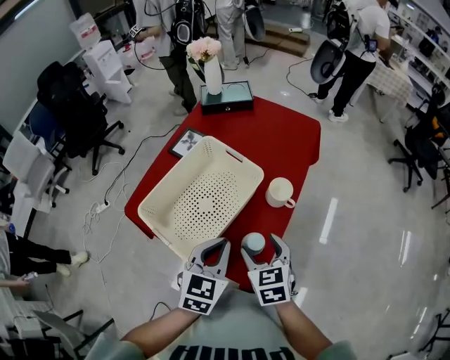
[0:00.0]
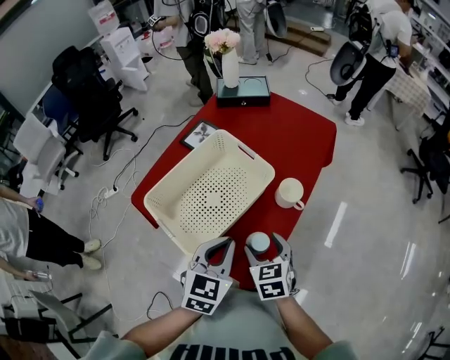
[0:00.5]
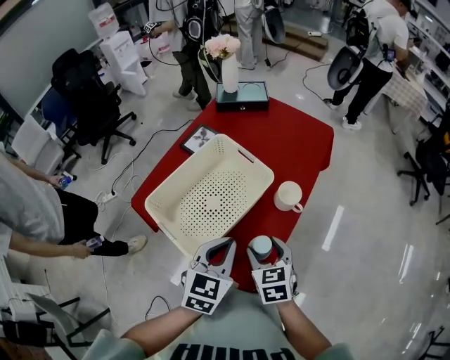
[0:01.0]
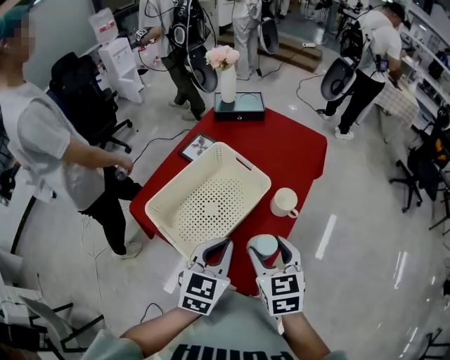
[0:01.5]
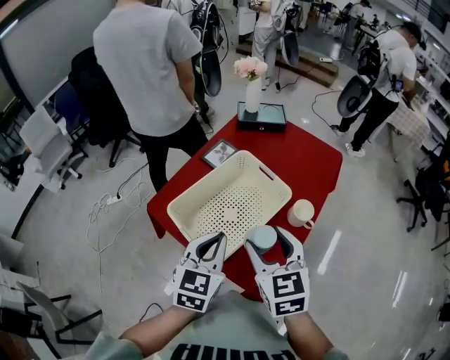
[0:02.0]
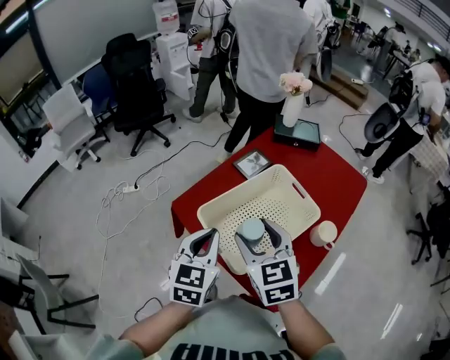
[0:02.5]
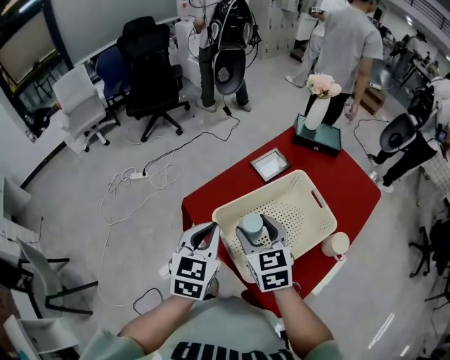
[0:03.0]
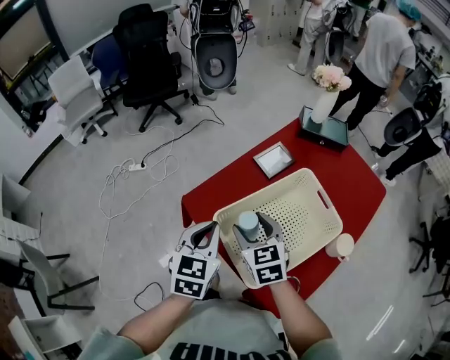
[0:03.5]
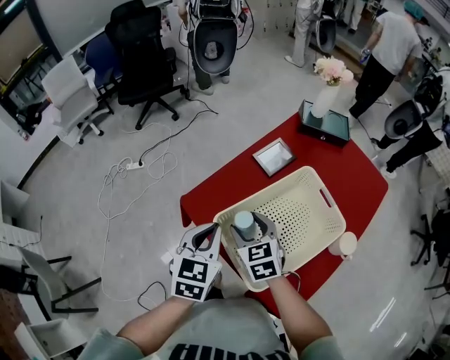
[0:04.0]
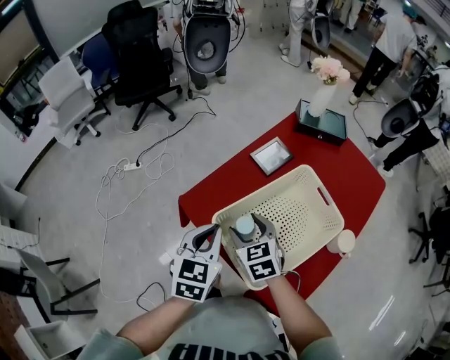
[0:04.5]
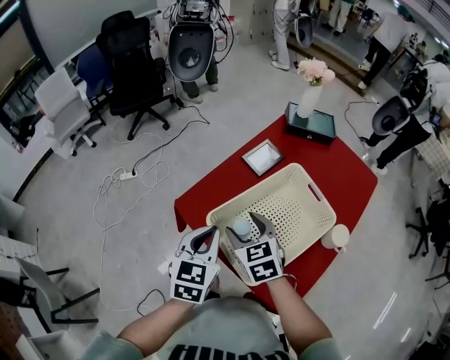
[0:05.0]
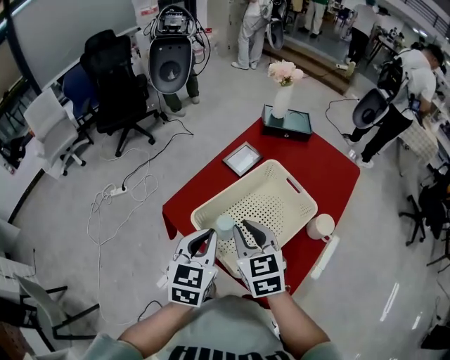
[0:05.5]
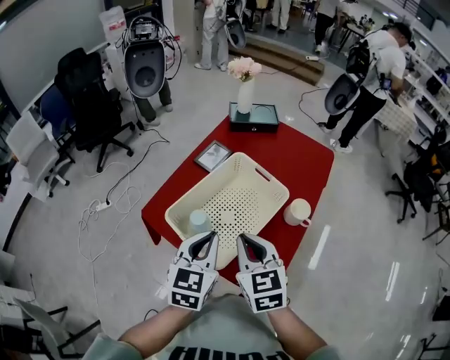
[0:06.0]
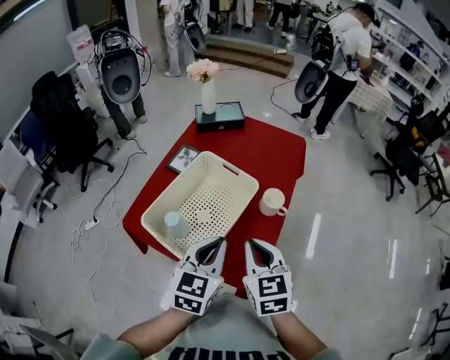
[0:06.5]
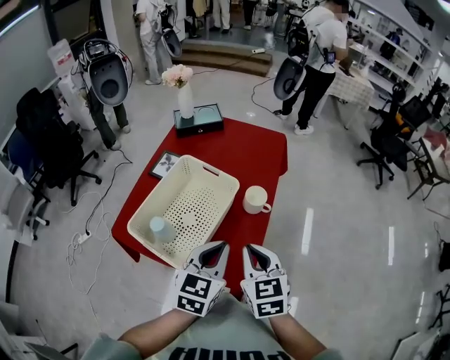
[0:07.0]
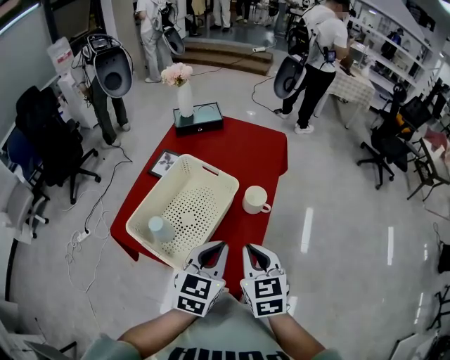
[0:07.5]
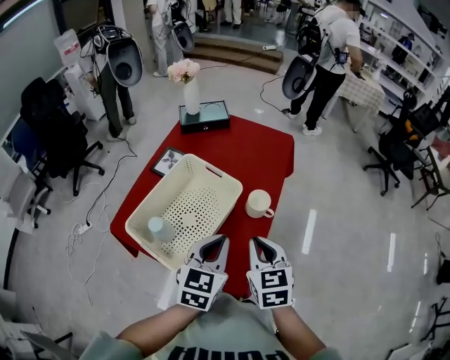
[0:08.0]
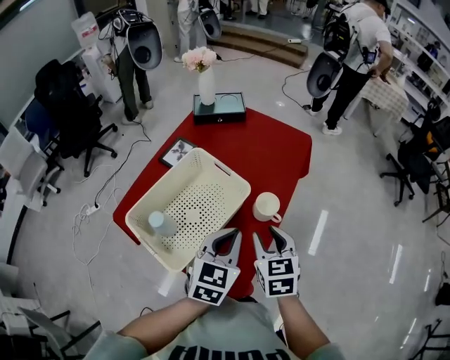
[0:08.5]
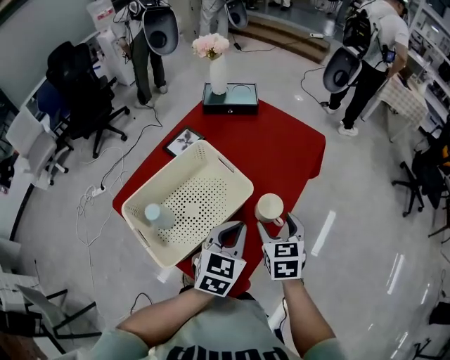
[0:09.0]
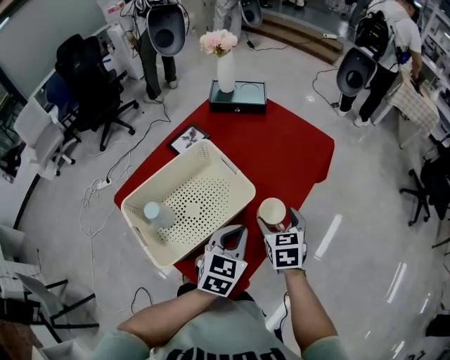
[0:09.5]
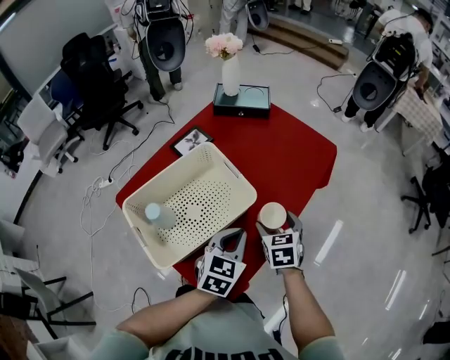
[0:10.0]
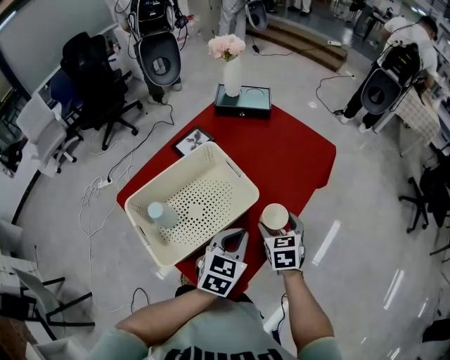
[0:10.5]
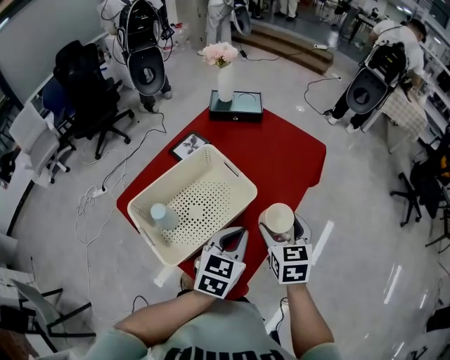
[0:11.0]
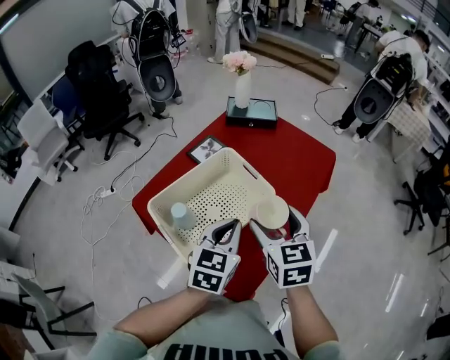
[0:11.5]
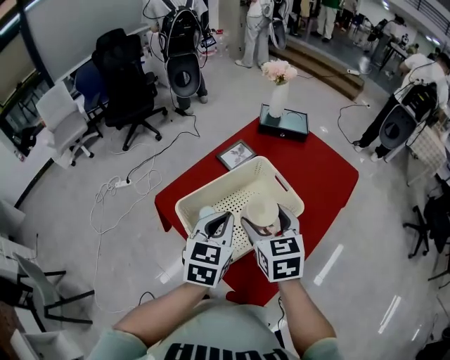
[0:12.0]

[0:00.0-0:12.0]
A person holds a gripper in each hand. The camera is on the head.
0:00.0 to 0:02.0: The left gripper is displaced to the left and upward by some 10 cm. The right gripper is displaced upward and to the left by approximately 15 cm.
0:02.0 to 0:04.0: The right gripper travels to the left, forward and downward by some 30 cm, and turns by some 20 degrees. The left gripper travels to the left and forward by some 20 cm.
0:04.0 to 0:06.0: The right gripper is displaced to the right, backward and upward by some 20 cm, rotates about 20 degrees, and closes its fingers, while the left gripper travels to the right and backward by roughly 15 cm.
0:06.0 to 0:08.0: Both grippers move to the right, about 15 cm.
0:08.0 to 0:10.0: The left gripper heads downward, forward and to the right, covering approximately 15 cm; the right gripper is displaced forward and downward by approximately 20 cm, and opens.
0:10.0 to 0:12.0: Both grippers move to the left and upward, some 25 cm.

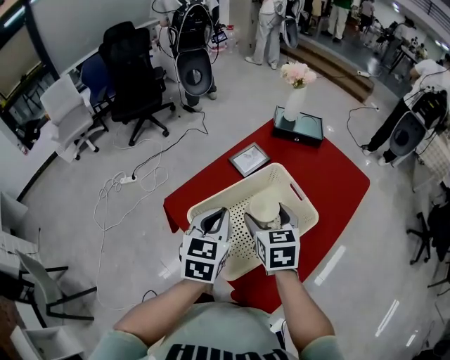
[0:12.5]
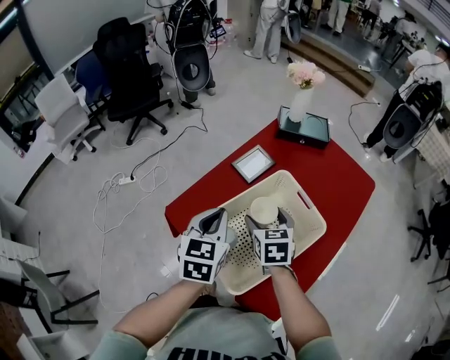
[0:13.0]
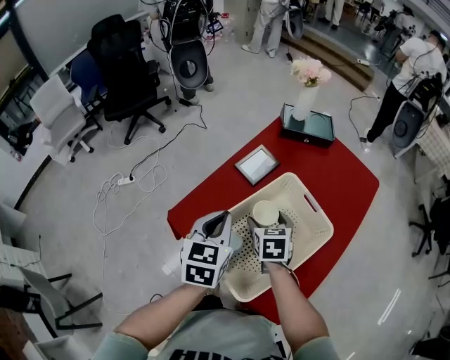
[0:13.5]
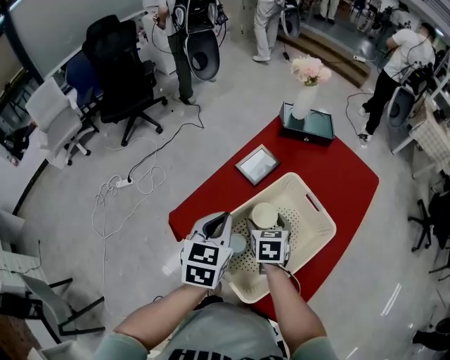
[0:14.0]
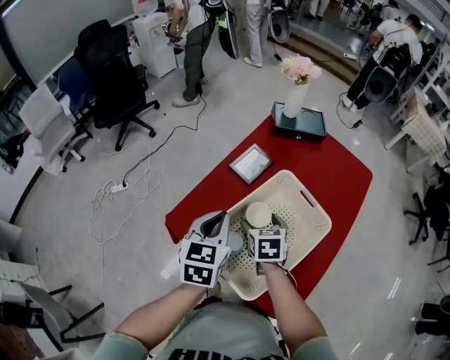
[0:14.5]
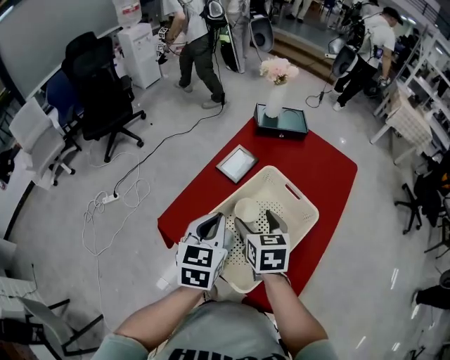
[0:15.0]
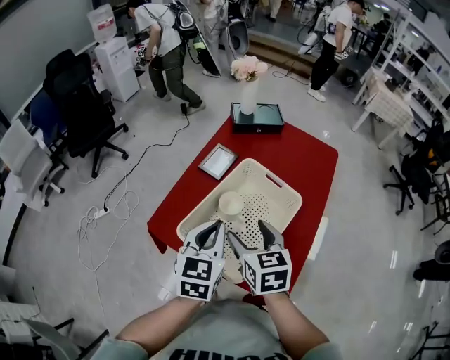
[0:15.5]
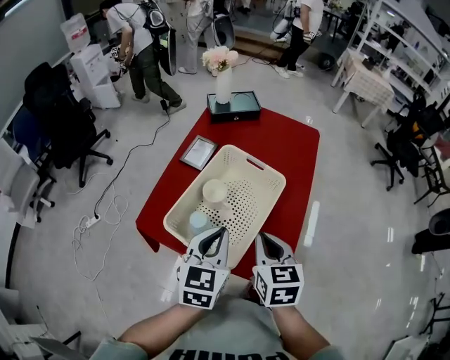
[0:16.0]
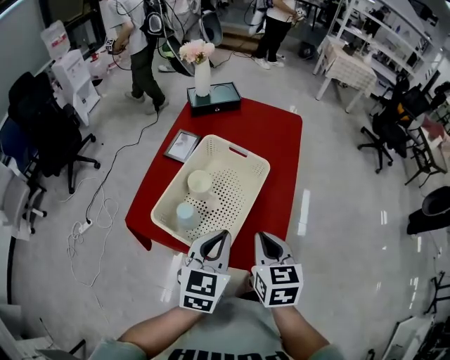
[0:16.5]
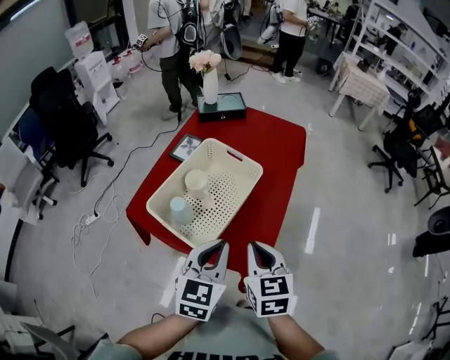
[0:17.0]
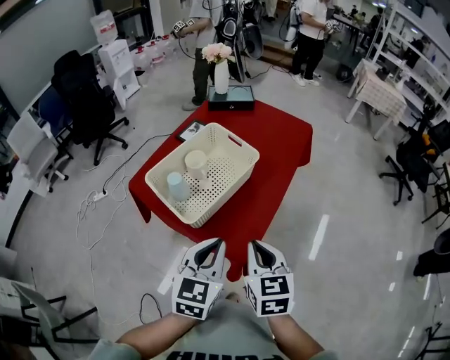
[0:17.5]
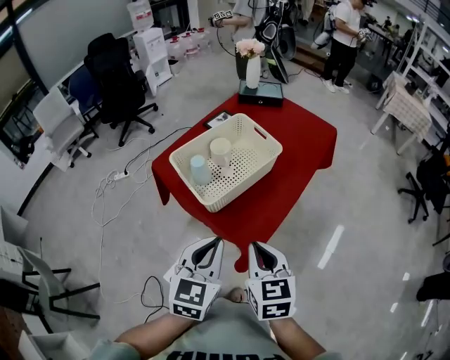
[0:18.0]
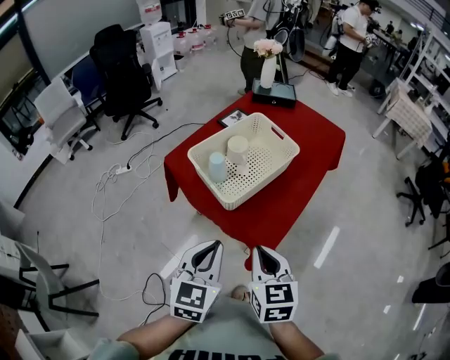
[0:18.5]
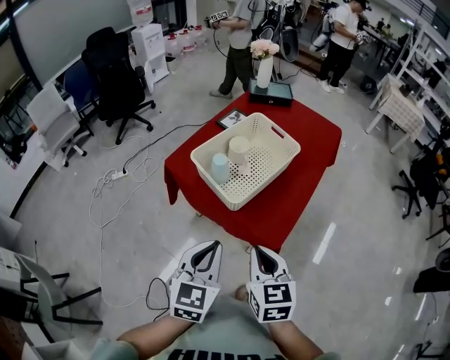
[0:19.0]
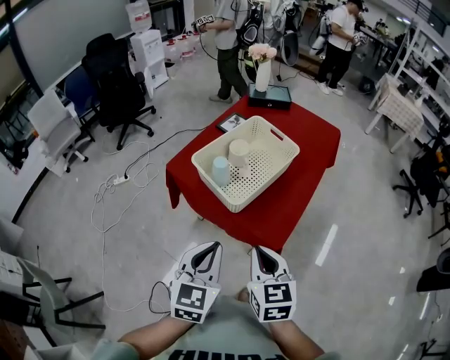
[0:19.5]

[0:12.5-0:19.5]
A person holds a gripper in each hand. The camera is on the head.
0:12.5 to 0:14.5: The left gripper goes approximately 5 cm forward; the right gripper heads downward, covering about 10 cm.
0:14.5 to 0:16.0: The left gripper shifts roughly 15 cm to the right and backward, and rotates some 20 degrees; the right gripper goes roughly 25 cm backward, upward and to the right, changes its angle by about 20 degrees, and closes up.
0:16.0 to 0:17.5: The grippers both shift to the right and backward by roughly 20 cm.
0:17.5 to 0:19.5: Both grippers move to the left and backward, roughly 15 cm.

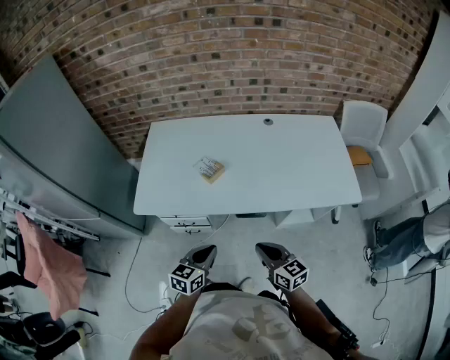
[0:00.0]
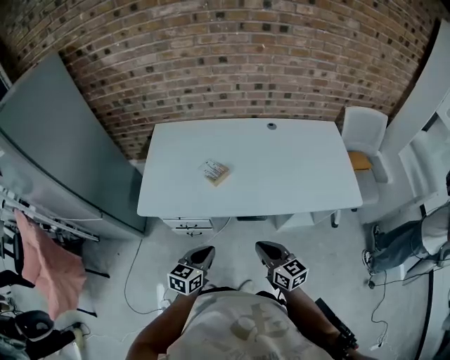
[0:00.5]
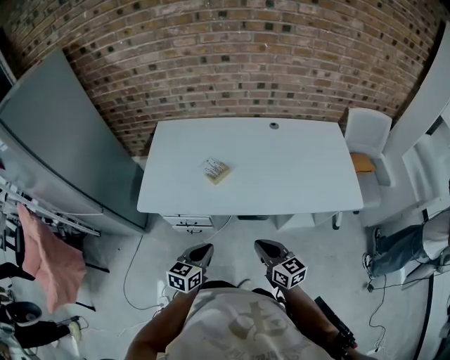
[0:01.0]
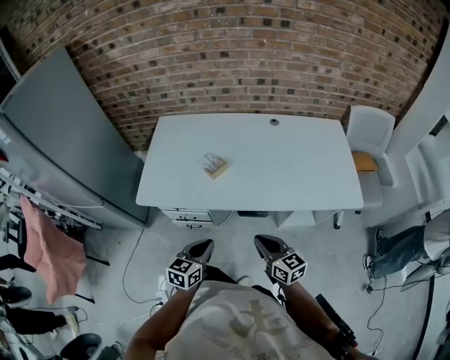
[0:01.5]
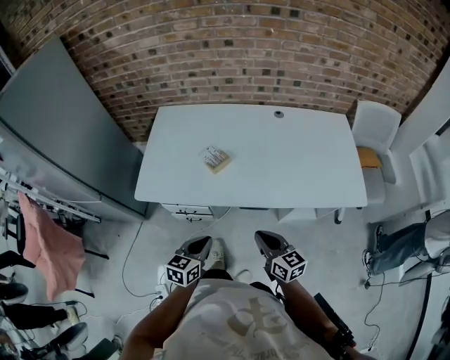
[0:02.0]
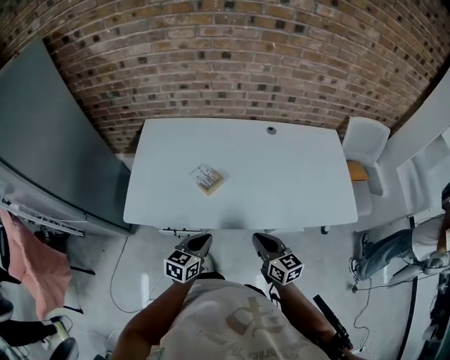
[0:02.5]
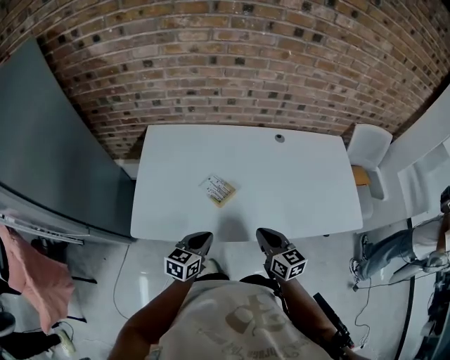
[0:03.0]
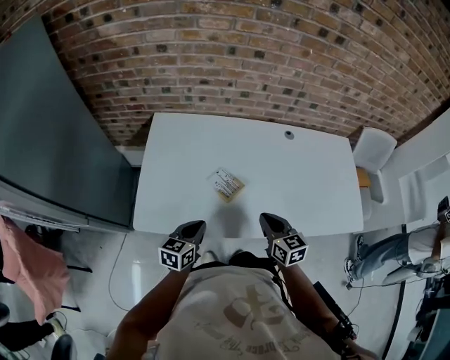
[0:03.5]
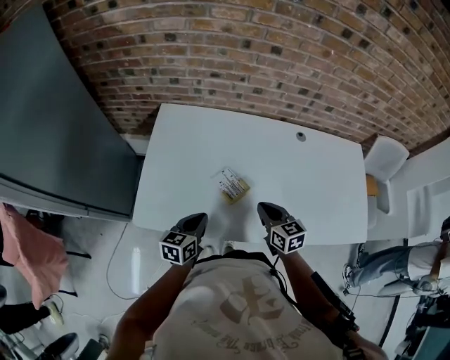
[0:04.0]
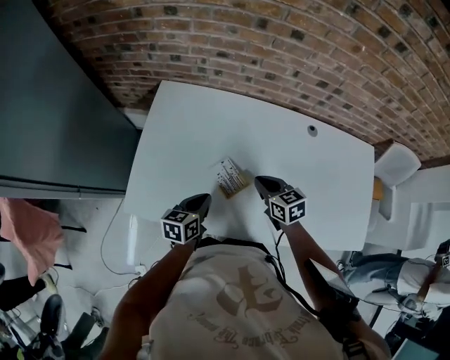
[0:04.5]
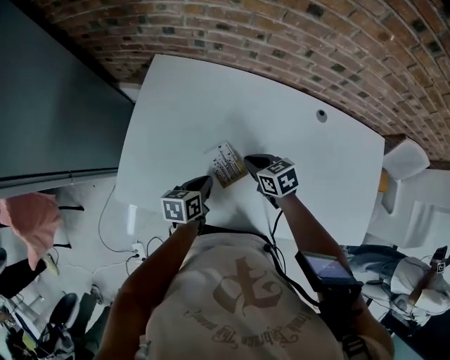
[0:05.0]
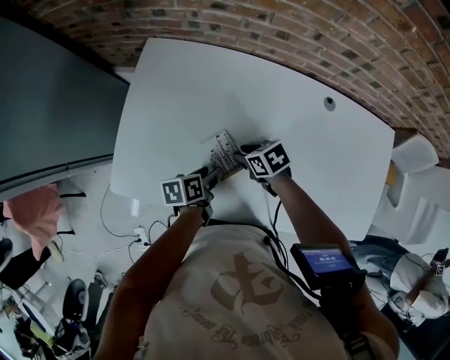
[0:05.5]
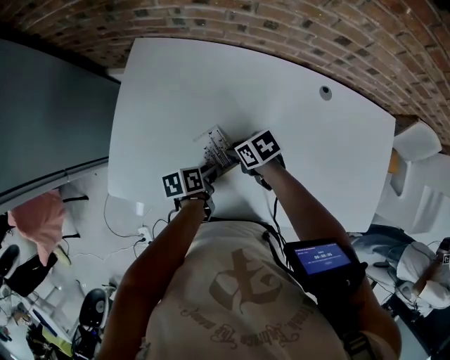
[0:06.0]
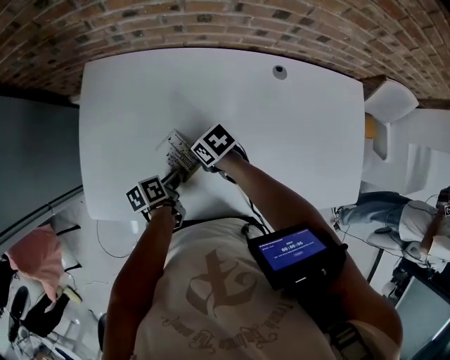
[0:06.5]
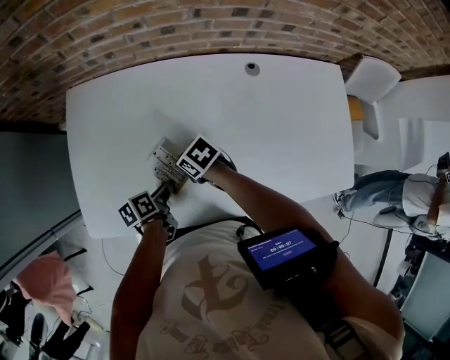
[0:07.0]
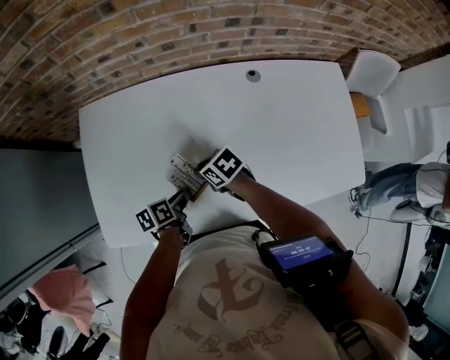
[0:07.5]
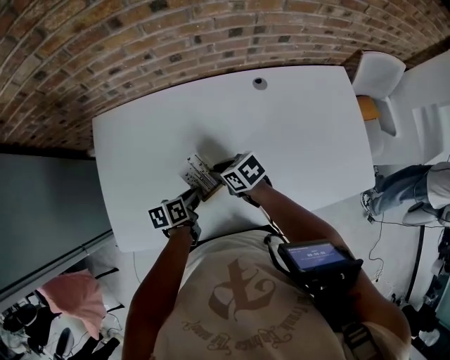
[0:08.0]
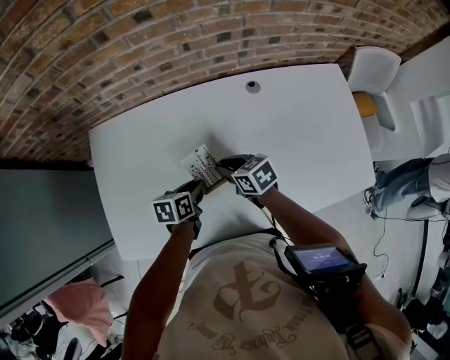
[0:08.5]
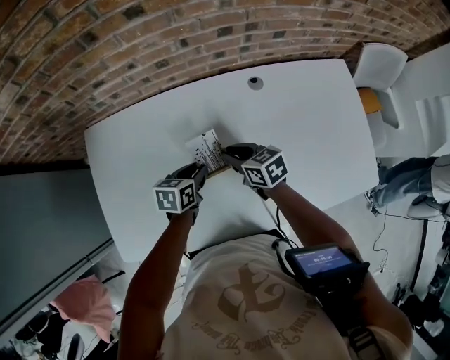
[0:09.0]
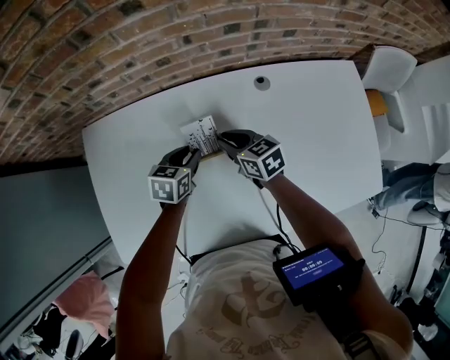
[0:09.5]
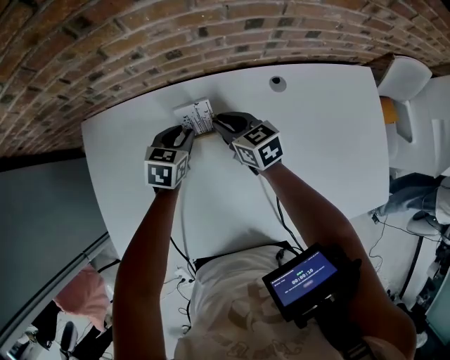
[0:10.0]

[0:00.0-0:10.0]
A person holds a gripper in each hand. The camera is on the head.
0:00.0 to 0:02.0: The grippers move only a little.
0:02.0 to 0:04.0: The right gripper moves forward, about 25 cm. The left gripper shifts about 25 cm forward and to the left.
0:04.0 to 0:06.0: Both grippers move downward, approximately 15 cm. The right gripper swivels about 50 degrees, and opens its fingers. Meanwhile the left gripper twists roughly 40 degrees counterclockwise, seen from behind, and opens.
0:06.0 to 0:08.0: The right gripper shifts by approximately 5 cm, and turns by about 20 degrees. Meanwhile the left gripper swivels approximately 20 degrees.
0:08.0 to 0:10.0: The two grippers go some 20 cm forward. The left gripper rotates around the line of its fingers by roughly 40 degrees, clockwise from behind; the right gripper turns by some 30 degrees.
